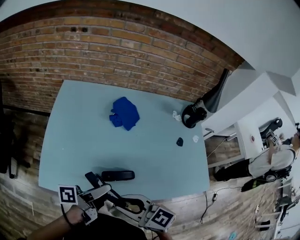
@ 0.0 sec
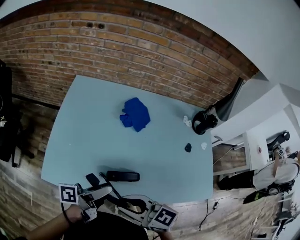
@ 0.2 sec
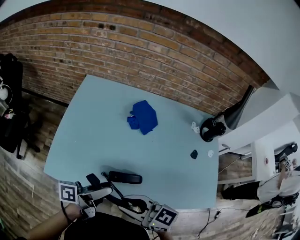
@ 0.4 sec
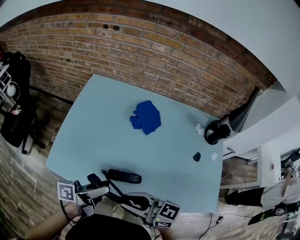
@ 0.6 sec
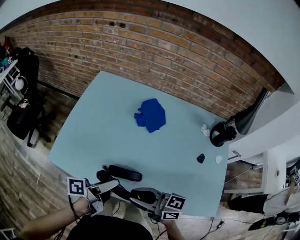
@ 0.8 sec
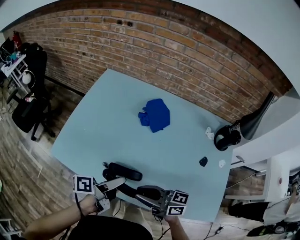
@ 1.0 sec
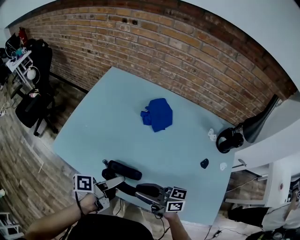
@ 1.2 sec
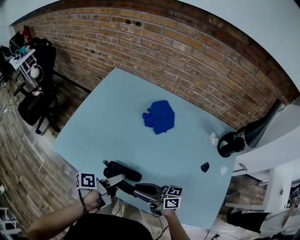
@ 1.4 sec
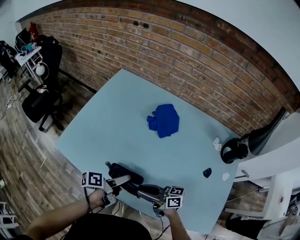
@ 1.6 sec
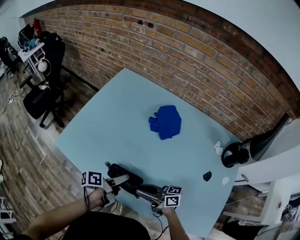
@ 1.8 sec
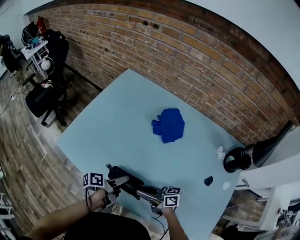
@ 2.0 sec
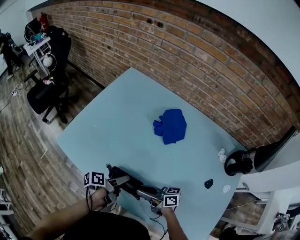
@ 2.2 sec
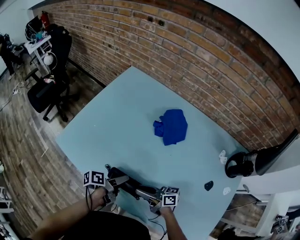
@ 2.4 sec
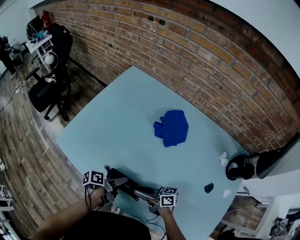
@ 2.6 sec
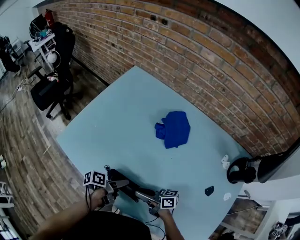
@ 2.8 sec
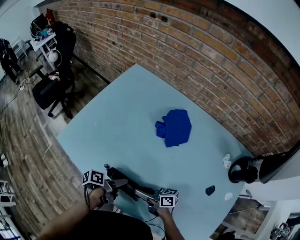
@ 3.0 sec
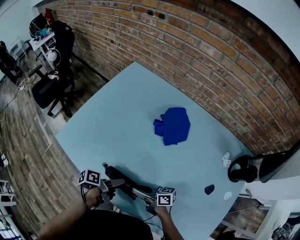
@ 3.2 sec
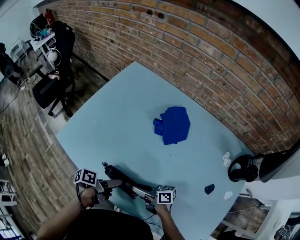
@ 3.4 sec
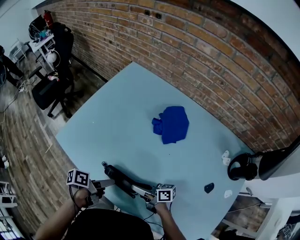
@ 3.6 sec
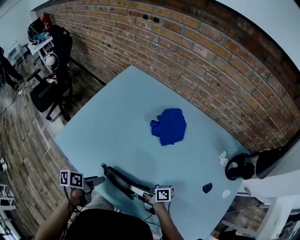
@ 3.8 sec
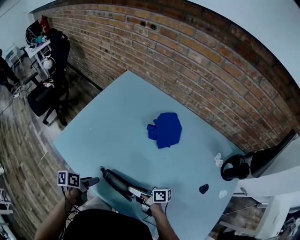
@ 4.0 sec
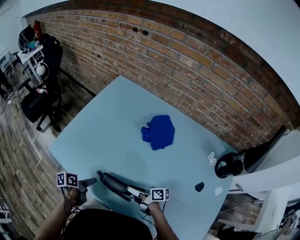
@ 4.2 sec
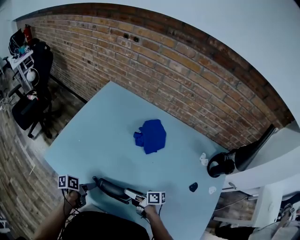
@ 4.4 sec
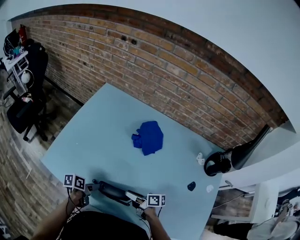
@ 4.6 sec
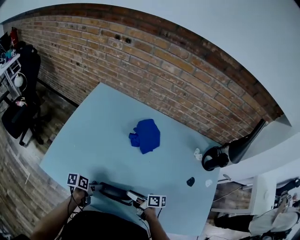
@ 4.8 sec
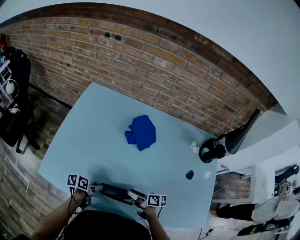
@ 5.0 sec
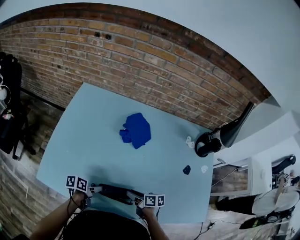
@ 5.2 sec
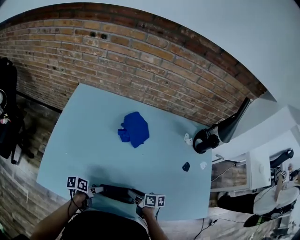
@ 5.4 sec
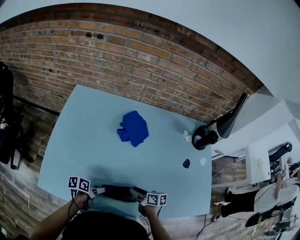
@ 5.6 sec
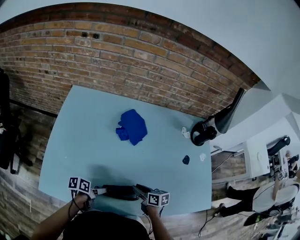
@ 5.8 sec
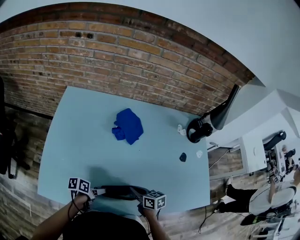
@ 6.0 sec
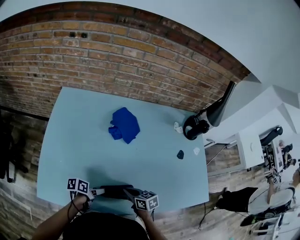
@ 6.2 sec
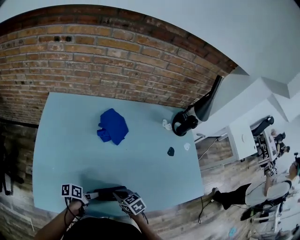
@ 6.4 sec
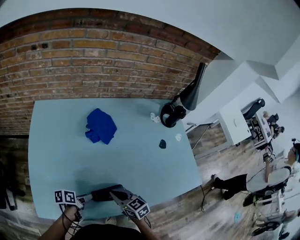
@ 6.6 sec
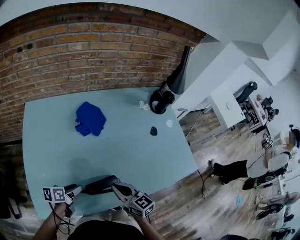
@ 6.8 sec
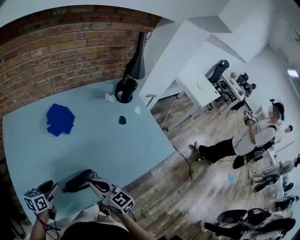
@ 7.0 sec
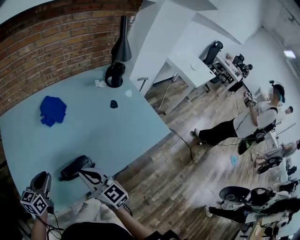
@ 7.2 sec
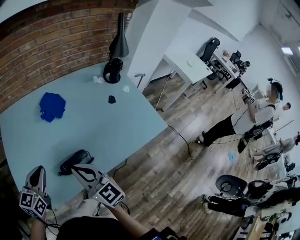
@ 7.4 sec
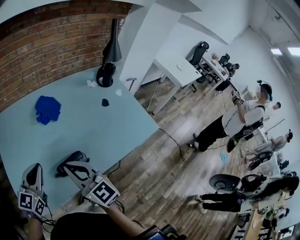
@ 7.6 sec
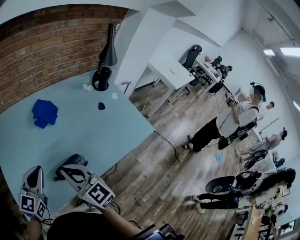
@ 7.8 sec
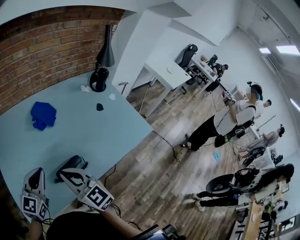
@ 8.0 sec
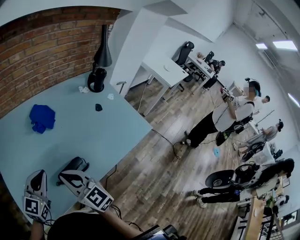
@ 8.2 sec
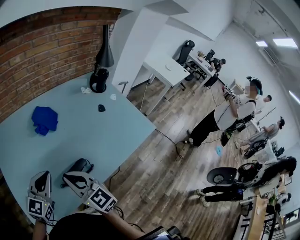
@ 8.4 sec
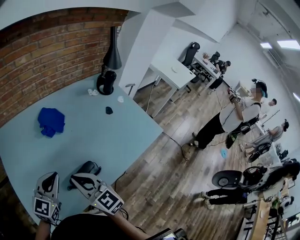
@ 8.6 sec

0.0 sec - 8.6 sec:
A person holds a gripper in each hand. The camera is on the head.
0.0 sec - 1.4 sec: The right gripper is displaced downward by some 10 cm, and rotates roughly 40 degrees.
1.4 sec - 2.8 sec: The right gripper shifts approximately 10 cm downward.
2.8 sec - 4.4 sec: The right gripper rotates roughly 20 degrees.
4.4 sec - 5.8 sec: The right gripper swivels about 40 degrees.
5.8 sec - 7.2 sec: The right gripper shifts some 20 cm upward, rotates approximately 50 degrees, and closes up.
7.2 sec - 8.6 sec: The right gripper shifts by roughly 10 cm.

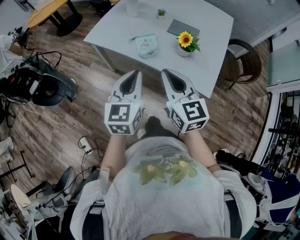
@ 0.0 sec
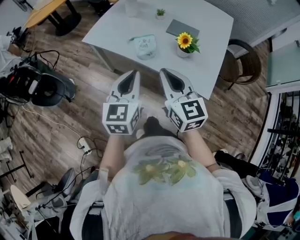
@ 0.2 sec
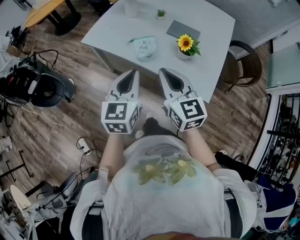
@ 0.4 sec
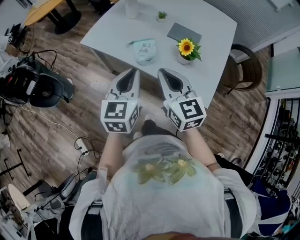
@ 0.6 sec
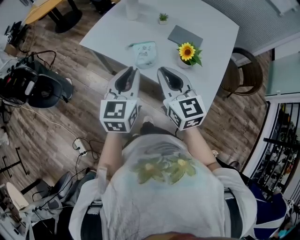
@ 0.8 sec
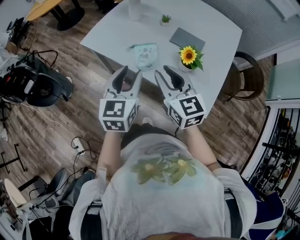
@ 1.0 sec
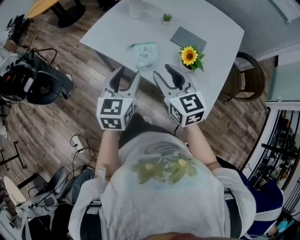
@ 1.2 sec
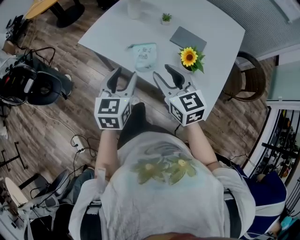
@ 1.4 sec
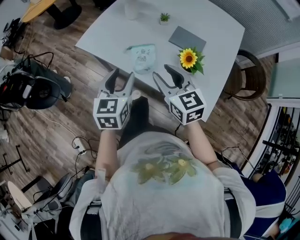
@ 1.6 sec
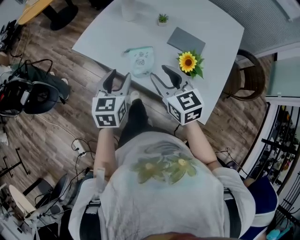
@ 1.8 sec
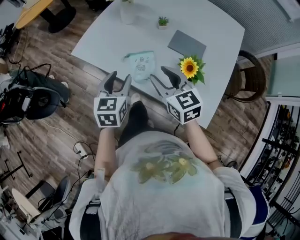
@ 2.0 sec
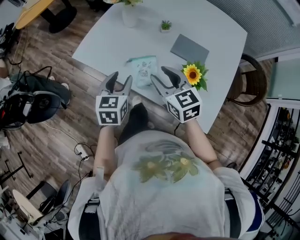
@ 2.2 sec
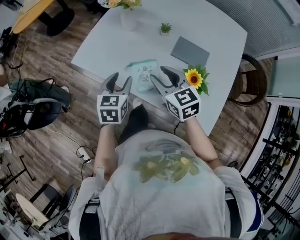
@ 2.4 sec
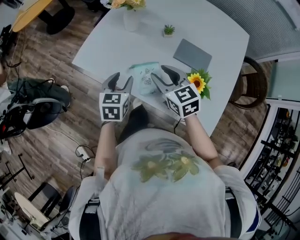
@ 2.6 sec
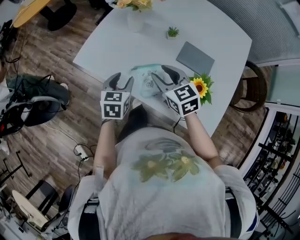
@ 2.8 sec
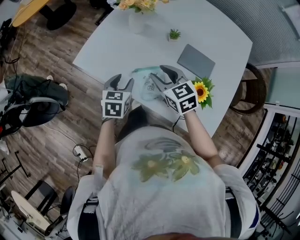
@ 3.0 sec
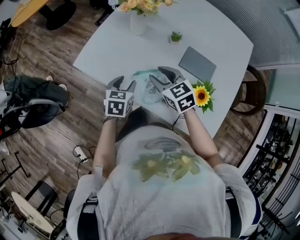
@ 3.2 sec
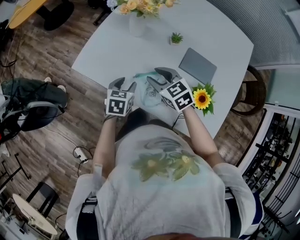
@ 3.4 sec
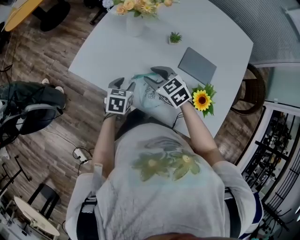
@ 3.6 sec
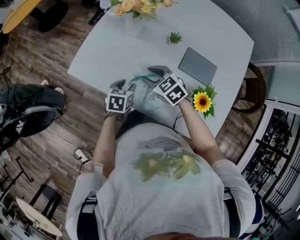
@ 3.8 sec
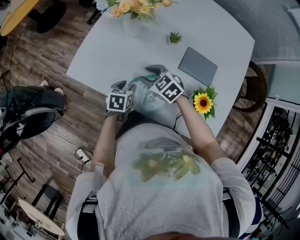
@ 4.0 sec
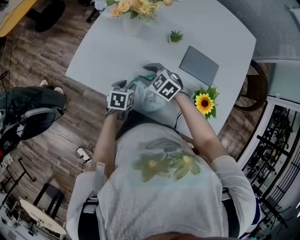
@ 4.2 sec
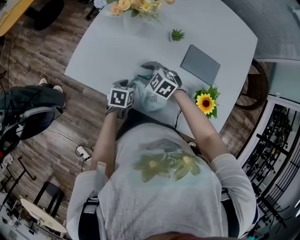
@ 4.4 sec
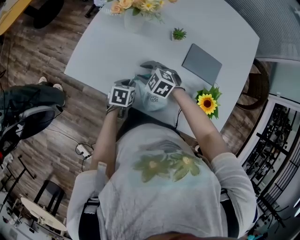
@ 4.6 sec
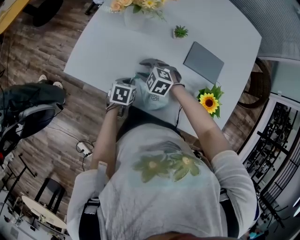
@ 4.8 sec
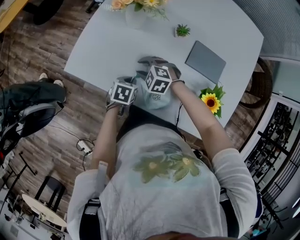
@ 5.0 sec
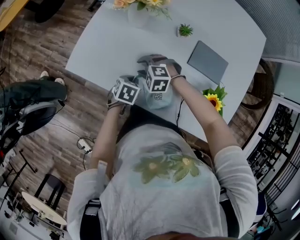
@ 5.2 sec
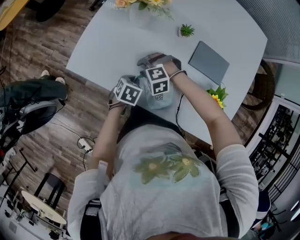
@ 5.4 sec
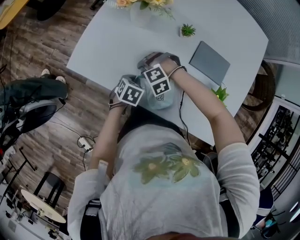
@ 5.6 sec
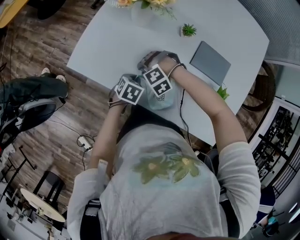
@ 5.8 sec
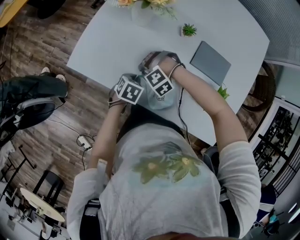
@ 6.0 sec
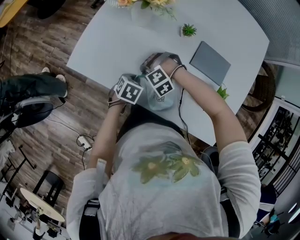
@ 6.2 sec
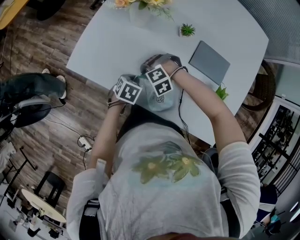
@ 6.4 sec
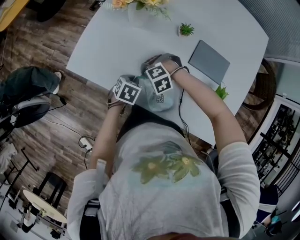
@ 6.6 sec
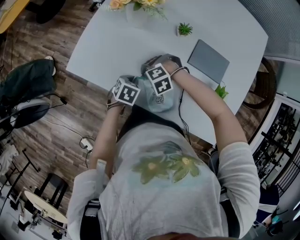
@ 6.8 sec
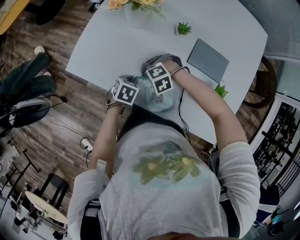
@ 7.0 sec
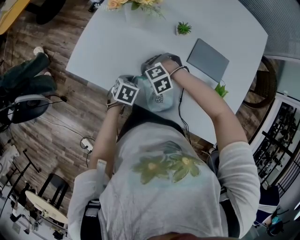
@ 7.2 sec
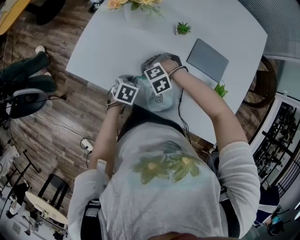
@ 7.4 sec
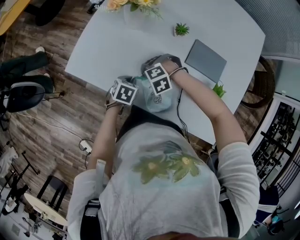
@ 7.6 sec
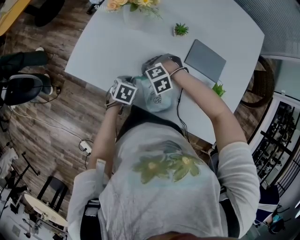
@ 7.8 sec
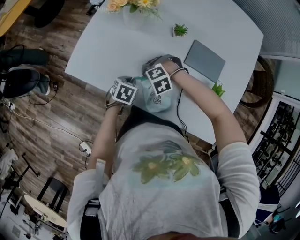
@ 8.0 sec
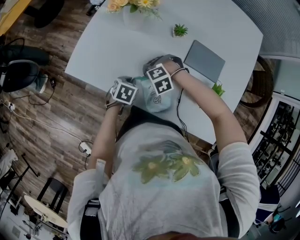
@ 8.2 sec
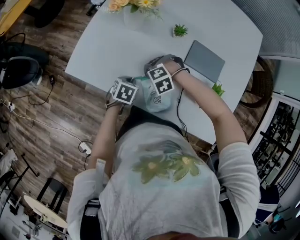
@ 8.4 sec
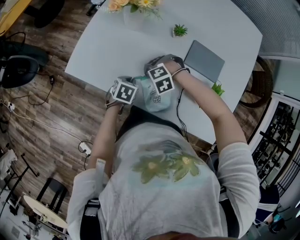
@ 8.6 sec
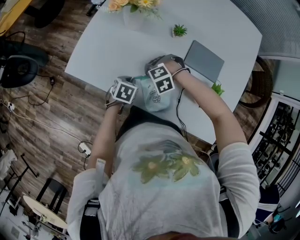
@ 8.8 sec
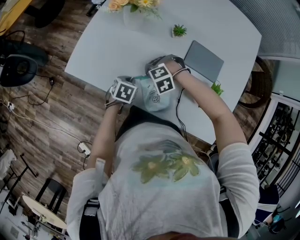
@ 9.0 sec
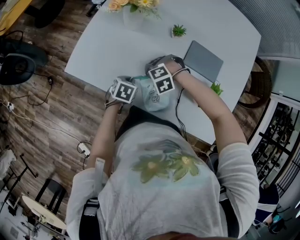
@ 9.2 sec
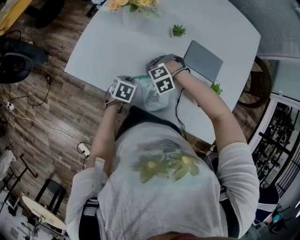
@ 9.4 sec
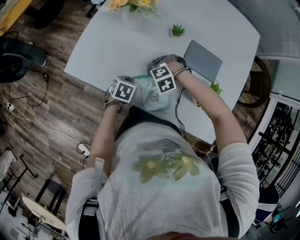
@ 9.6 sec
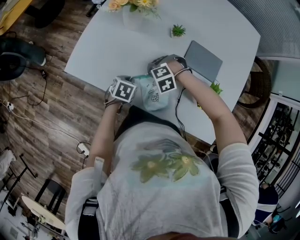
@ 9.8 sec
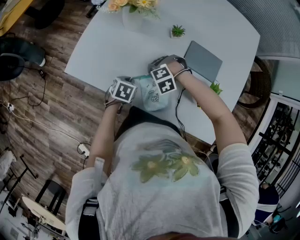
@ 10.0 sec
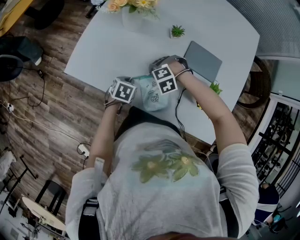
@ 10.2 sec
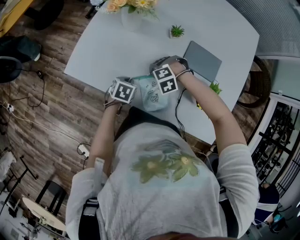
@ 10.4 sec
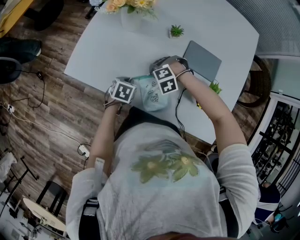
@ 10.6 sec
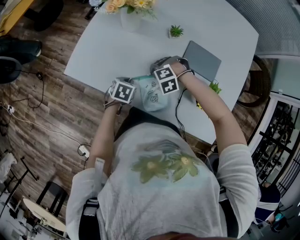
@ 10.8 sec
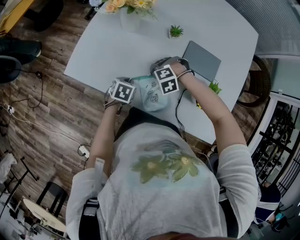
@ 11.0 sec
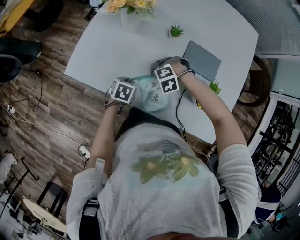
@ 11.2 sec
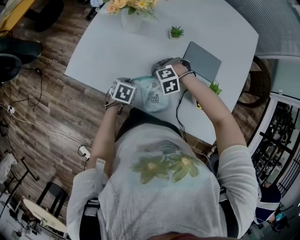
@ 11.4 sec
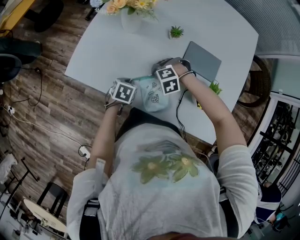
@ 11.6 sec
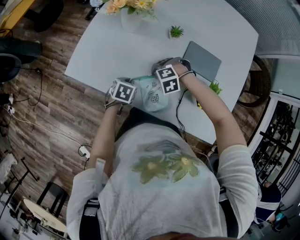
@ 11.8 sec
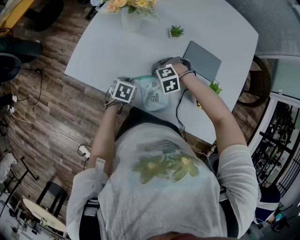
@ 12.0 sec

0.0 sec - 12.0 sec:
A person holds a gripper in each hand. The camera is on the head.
0.0 sec - 1.6 sec: The left gripper moves forward and downward, approximately 15 cm, and opens up. Meanwhile the right gripper shifts about 15 cm forward, and opens.
1.6 sec - 3.0 sec: Both grippers travel together forward and downward, about 20 cm.
3.0 sec - 4.4 sec: The left gripper travels downward by approximately 15 cm, and rotates about 20 degrees, while the right gripper moves downward and forward, some 15 cm, and rotates about 30 degrees.
4.4 sec - 6.0 sec: The left gripper closes up. The right gripper is displaced downward by approximately 5 cm, twists approximately 70 degrees counterclockwise, seen from behind, and closes up.
6.0 sec - 7.6 sec: The right gripper turns by some 20 degrees.
7.6 sec - 10.4 sec: The grippers move only a little.
10.4 sec - 12.0 sec: Neither gripper changes place.

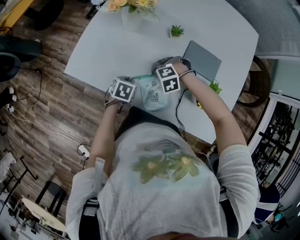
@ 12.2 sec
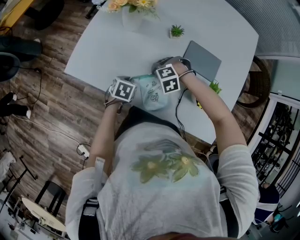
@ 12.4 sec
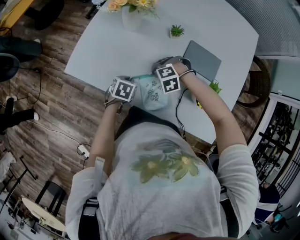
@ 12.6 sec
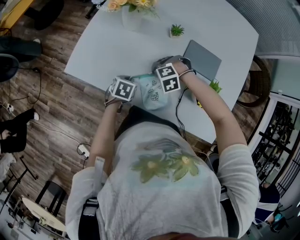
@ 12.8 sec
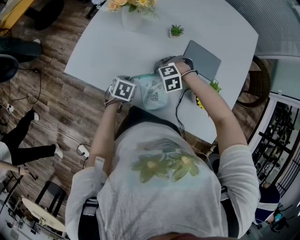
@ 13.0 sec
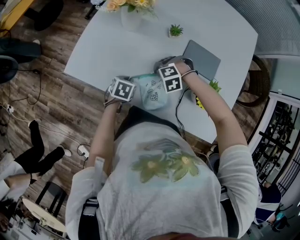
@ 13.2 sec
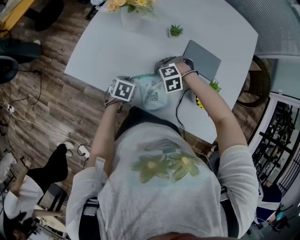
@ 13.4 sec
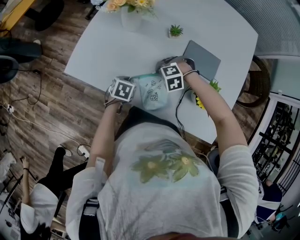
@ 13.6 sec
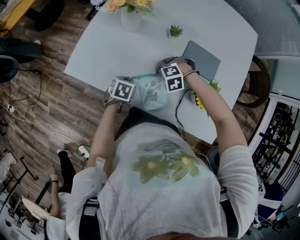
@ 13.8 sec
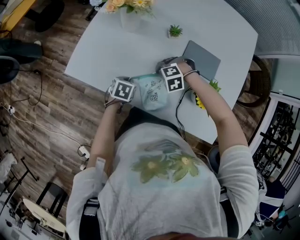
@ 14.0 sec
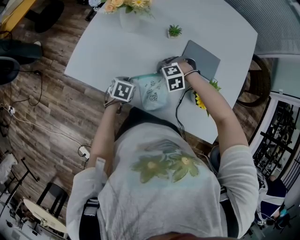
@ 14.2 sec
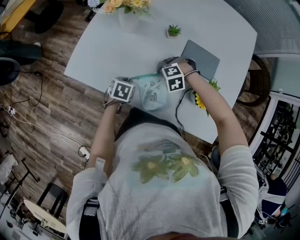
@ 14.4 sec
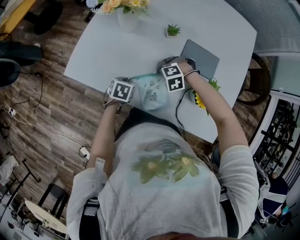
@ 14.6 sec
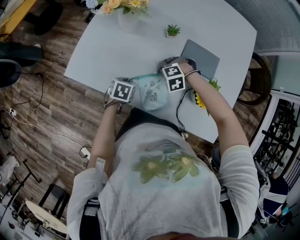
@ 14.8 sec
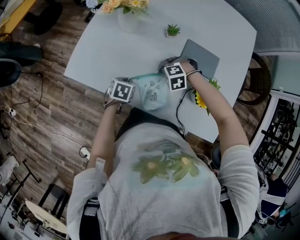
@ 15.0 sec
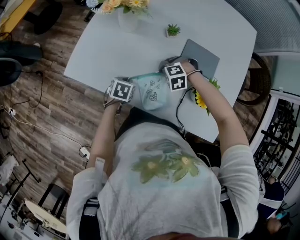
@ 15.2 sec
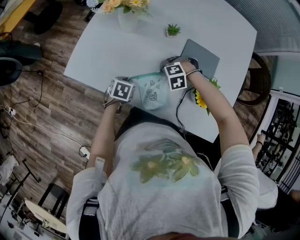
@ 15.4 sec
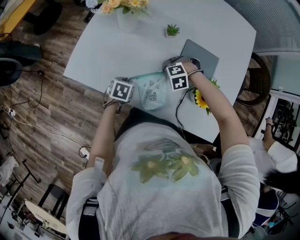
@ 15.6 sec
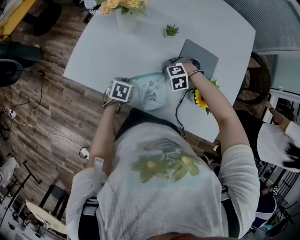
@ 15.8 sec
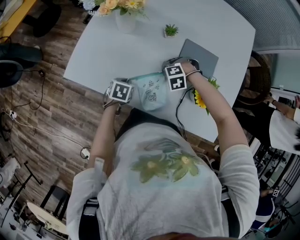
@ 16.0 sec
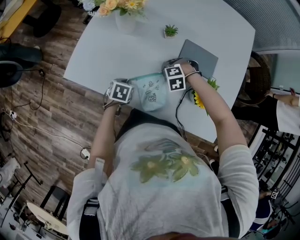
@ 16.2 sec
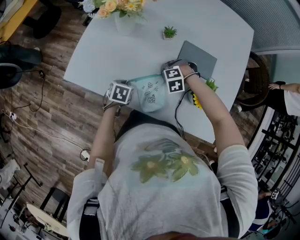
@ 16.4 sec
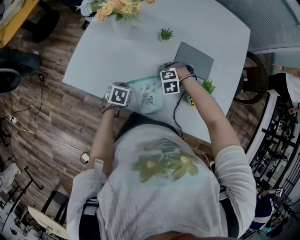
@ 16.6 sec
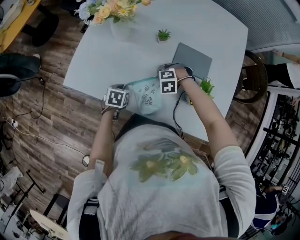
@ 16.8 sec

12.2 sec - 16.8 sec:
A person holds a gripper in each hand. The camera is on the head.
12.2 sec - 15.2 sec: There are only small adjustments of the grippers.
15.2 sec - 16.8 sec: The grippers move only a little.
